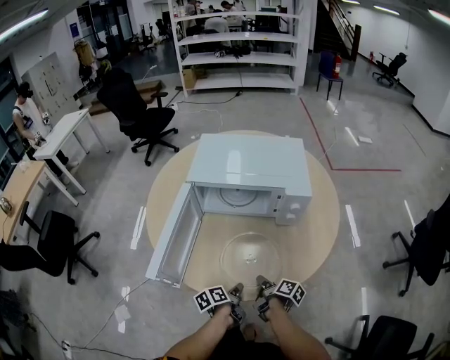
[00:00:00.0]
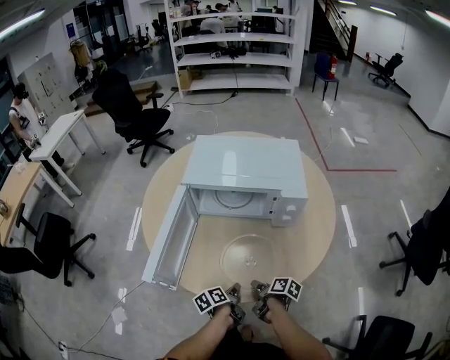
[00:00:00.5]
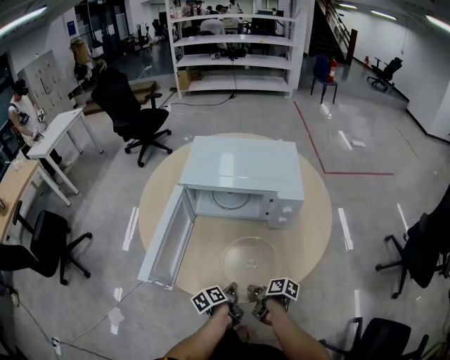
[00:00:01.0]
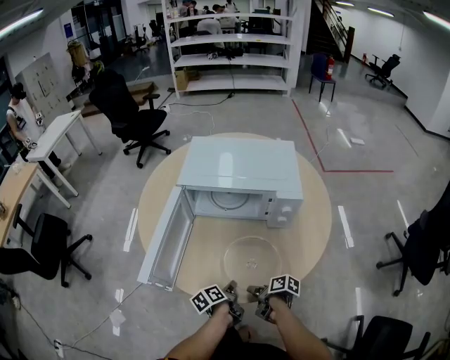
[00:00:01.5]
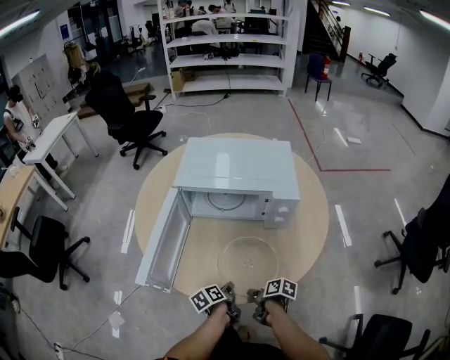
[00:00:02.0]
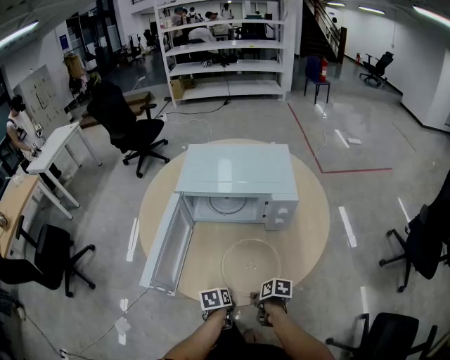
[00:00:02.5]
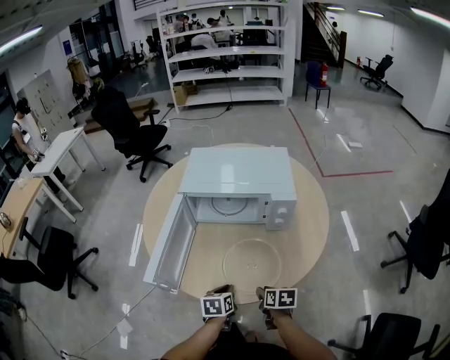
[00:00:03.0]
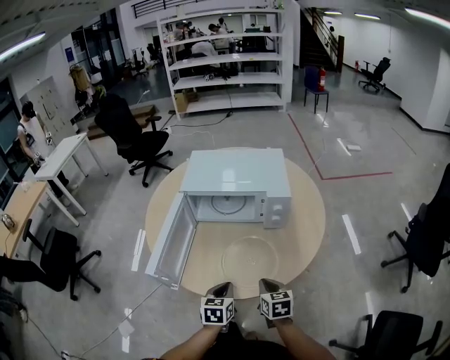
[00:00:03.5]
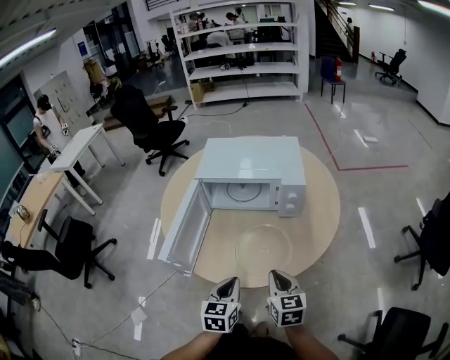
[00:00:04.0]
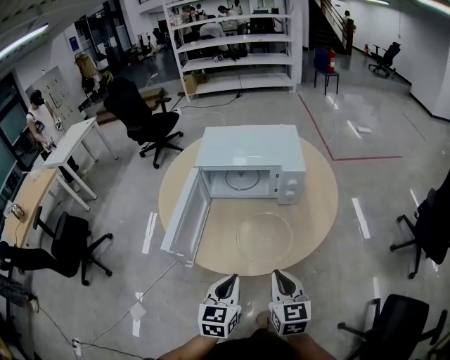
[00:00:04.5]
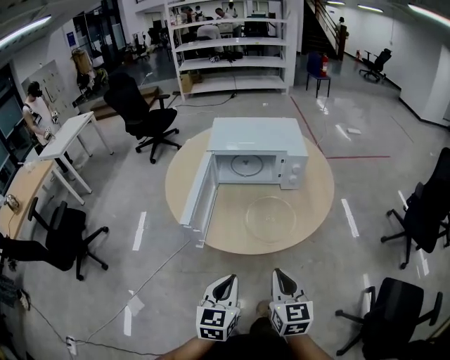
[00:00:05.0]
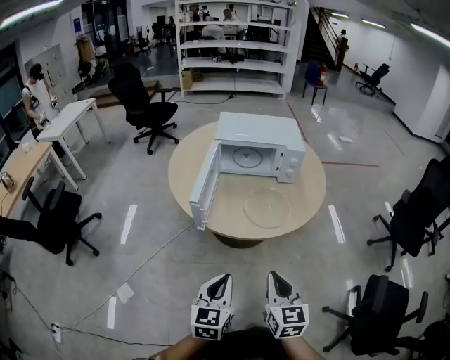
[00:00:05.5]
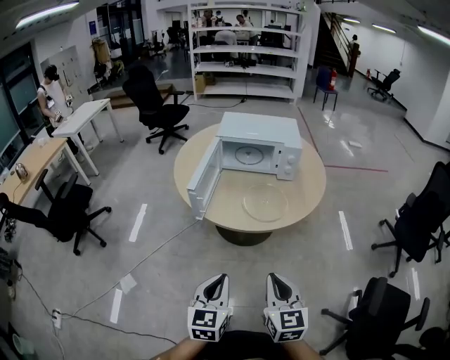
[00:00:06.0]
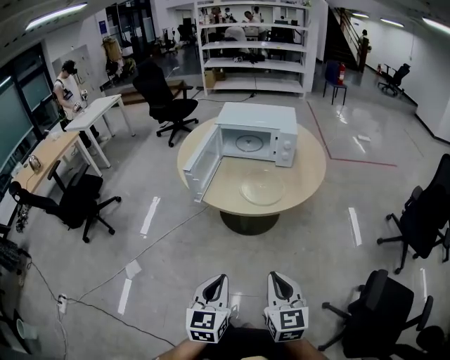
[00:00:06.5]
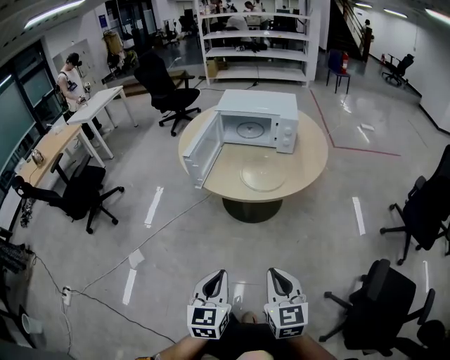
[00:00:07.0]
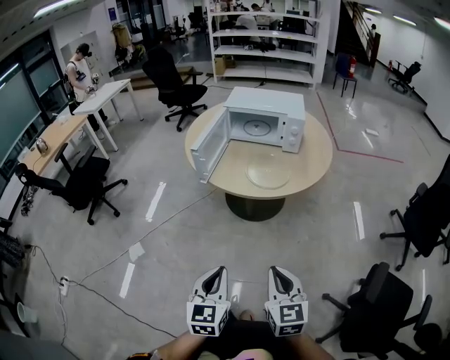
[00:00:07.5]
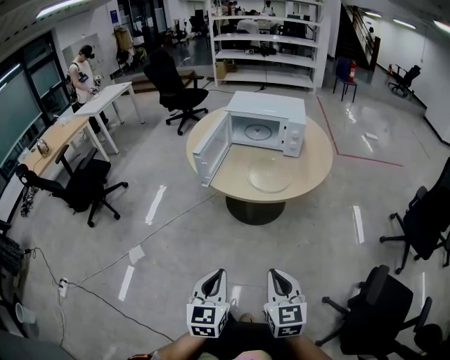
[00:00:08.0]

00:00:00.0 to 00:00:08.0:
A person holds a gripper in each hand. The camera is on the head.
00:00:00.0 to 00:00:02.0: The right gripper swivels about 30 degrees.
00:00:02.0 to 00:00:04.0: The right gripper heads upward, covering some 20 cm, rolls counterclockwise, seen from behind, by about 60 degrees, and closes its fingers; the left gripper travels upward and backward by roughly 20 cm, and rolls clockwise, seen from behind, by roughly 60 degrees.
00:00:04.0 to 00:00:06.0: Both grippers move backward, roughly 35 cm.
00:00:06.0 to 00:00:08.0: The left gripper is displaced backward by about 15 cm; the right gripper travels backward and to the right by some 15 cm.

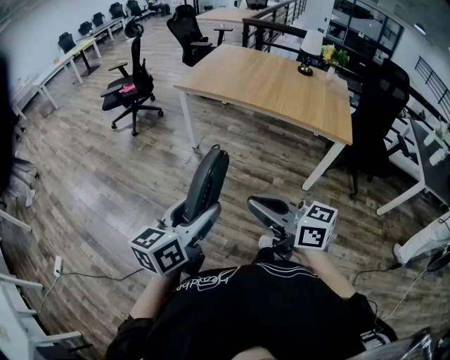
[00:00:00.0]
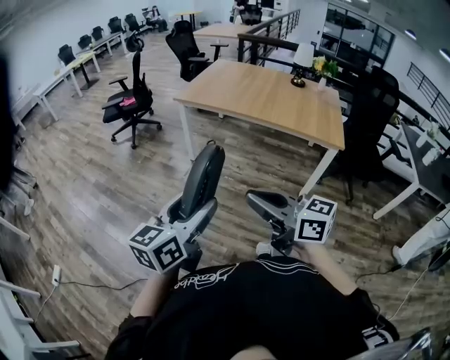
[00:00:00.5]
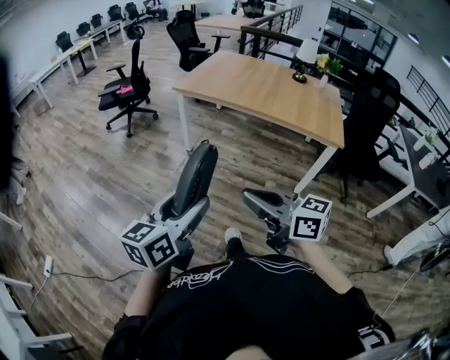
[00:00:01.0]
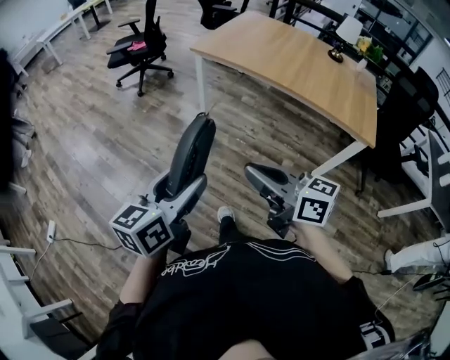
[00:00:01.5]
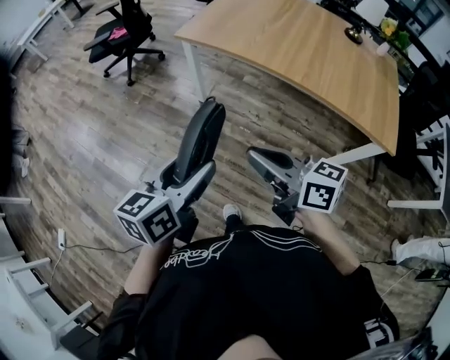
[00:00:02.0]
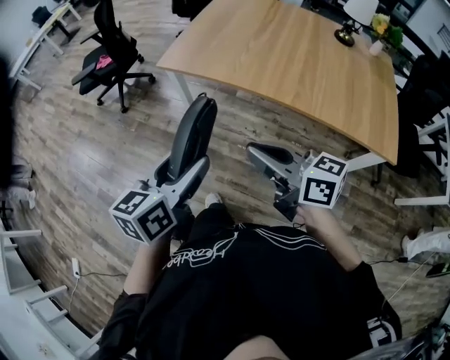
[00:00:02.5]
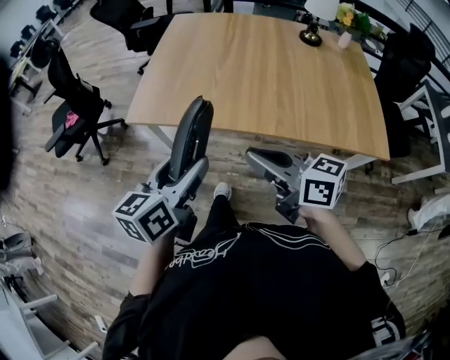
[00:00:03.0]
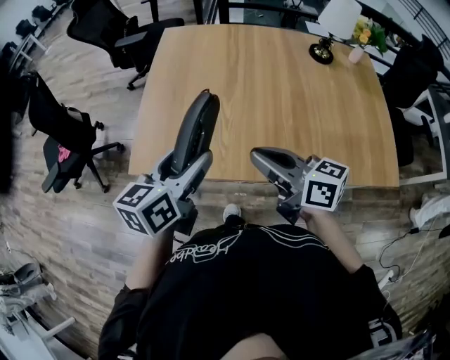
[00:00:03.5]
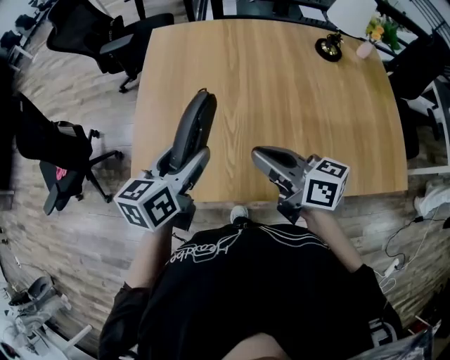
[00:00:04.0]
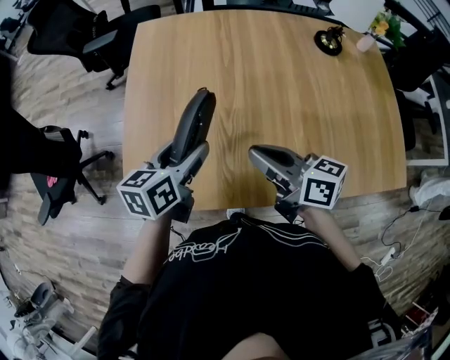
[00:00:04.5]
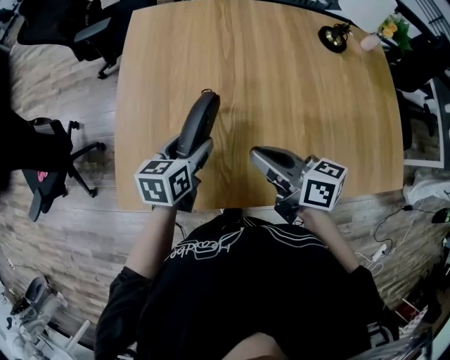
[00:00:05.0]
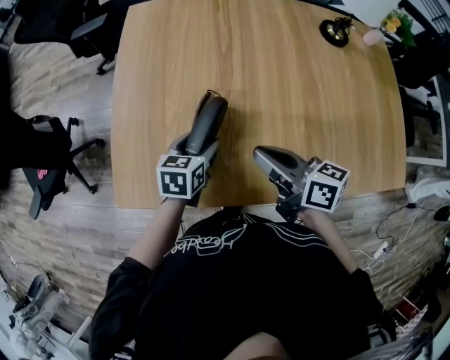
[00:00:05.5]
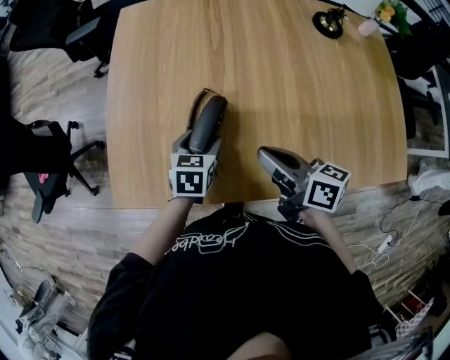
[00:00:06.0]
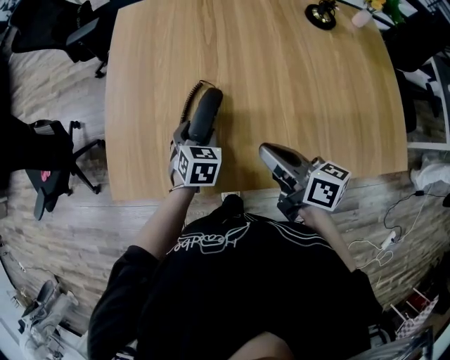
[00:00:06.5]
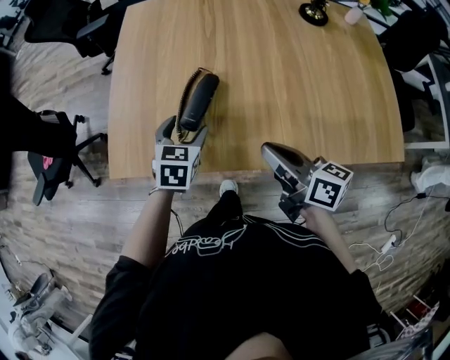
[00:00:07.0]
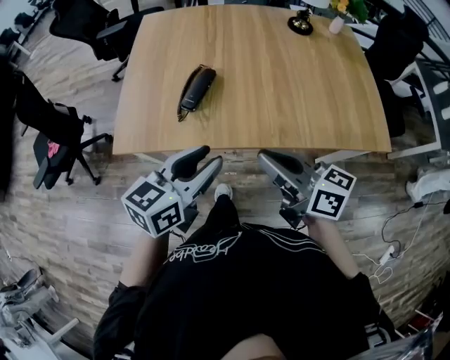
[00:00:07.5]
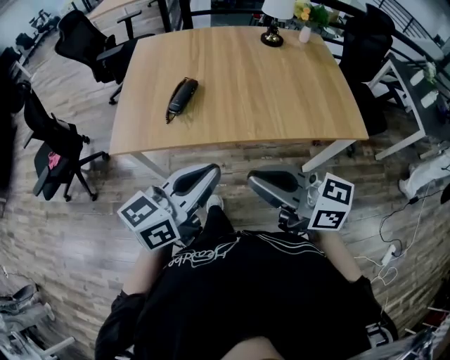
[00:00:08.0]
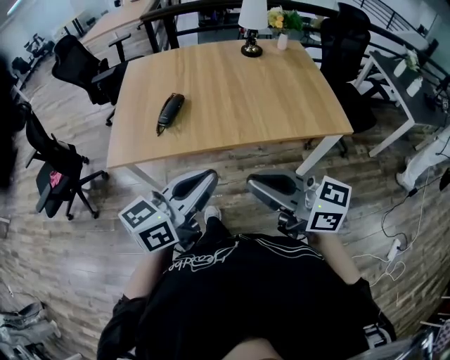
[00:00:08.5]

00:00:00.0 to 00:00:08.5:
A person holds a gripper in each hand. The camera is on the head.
00:00:00.0 to 00:00:02.0: The grippers both shift forward by about 30 cm.
00:00:02.0 to 00:00:04.0: Both grippers are carried roughly 60 cm. The right gripper turns by approximately 30 degrees. The left gripper rotates approximately 30 degrees.
00:00:04.0 to 00:00:06.5: The right gripper heads downward and to the right, covering some 10 cm. The left gripper moves downward, roughly 20 cm, and changes its angle by some 40 degrees.
00:00:06.5 to 00:00:08.5: The grippers both shift backward and upward by roughly 50 cm. The left gripper points its fingers roughly 50 degrees further upward, and closes its fingers. The right gripper rotates some 40 degrees.

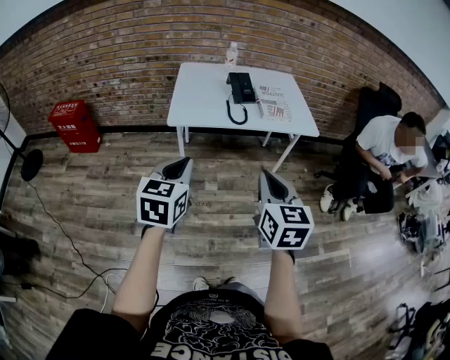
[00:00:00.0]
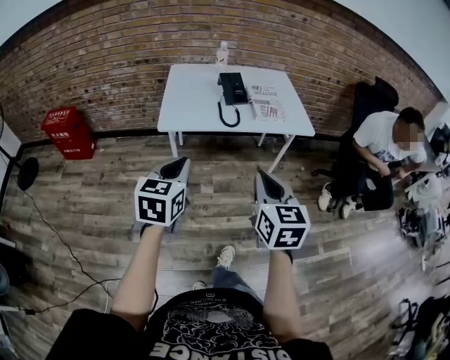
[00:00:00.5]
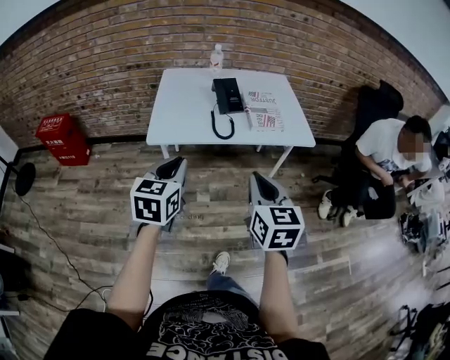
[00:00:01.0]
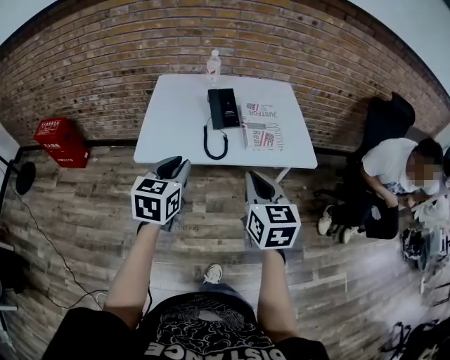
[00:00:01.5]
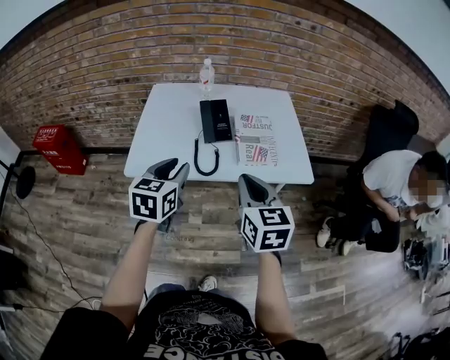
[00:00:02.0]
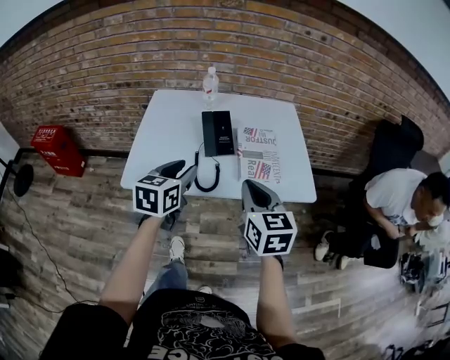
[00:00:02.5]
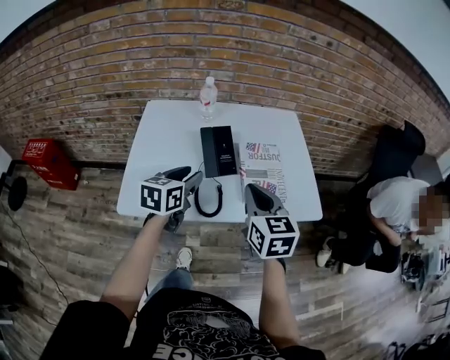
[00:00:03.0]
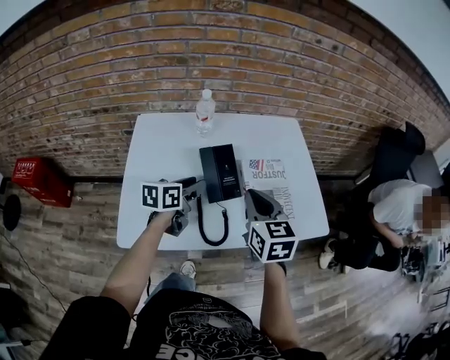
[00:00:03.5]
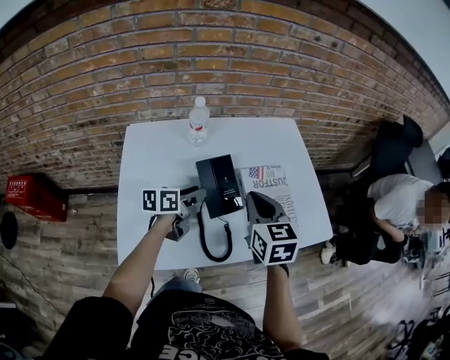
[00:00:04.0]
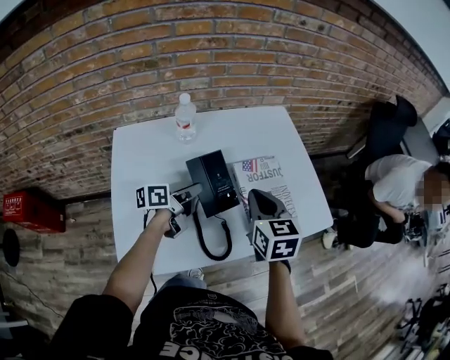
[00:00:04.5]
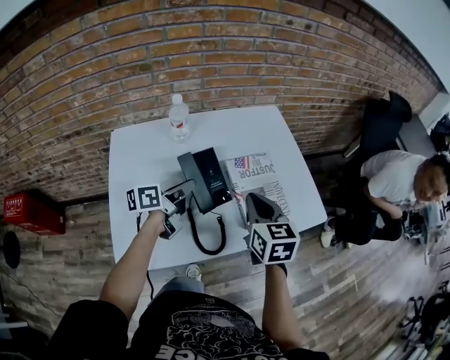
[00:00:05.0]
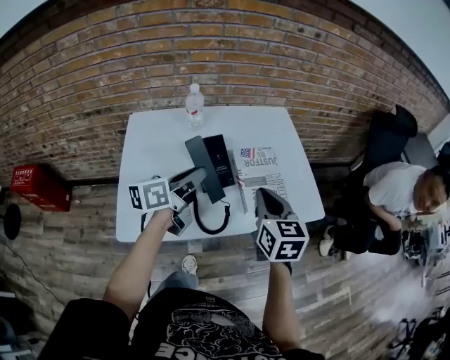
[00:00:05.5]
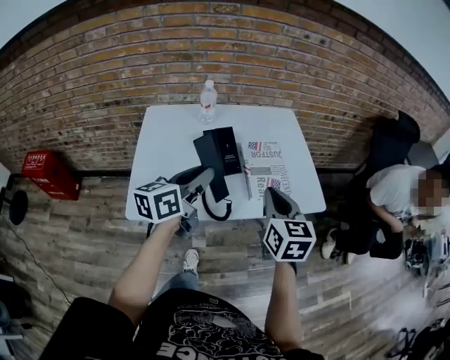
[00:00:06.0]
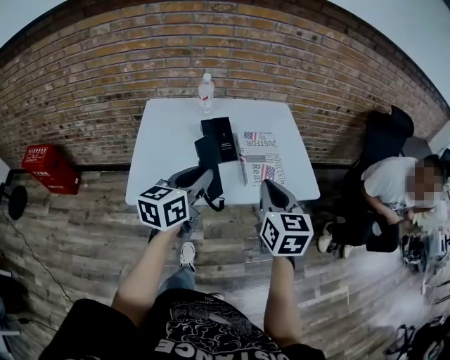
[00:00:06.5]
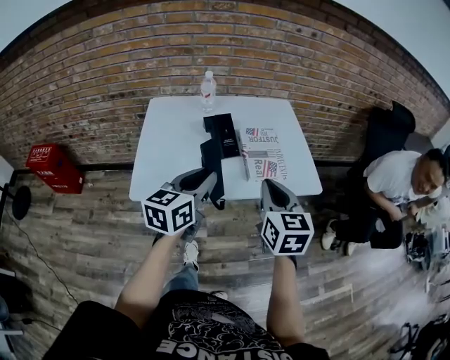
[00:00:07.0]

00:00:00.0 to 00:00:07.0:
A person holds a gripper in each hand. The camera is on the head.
00:00:00.0 to 00:00:02.0: Both grippers move forward, about 30 cm. The left gripper opens up.
00:00:02.0 to 00:00:03.5: The right gripper goes about 25 cm forward, while the left gripper moves forward and downward, about 30 cm, and swivels about 30 degrees.
00:00:03.5 to 00:00:05.0: The left gripper turns by roughly 30 degrees; the right gripper moves some 5 cm.
00:00:05.0 to 00:00:07.0: The left gripper goes approximately 30 cm backward and upward, and swivels some 40 degrees. Meanwhile the right gripper moves backward, roughly 20 cm.

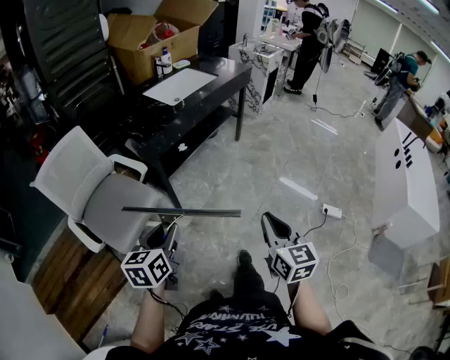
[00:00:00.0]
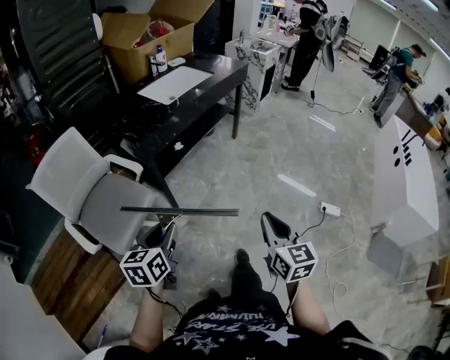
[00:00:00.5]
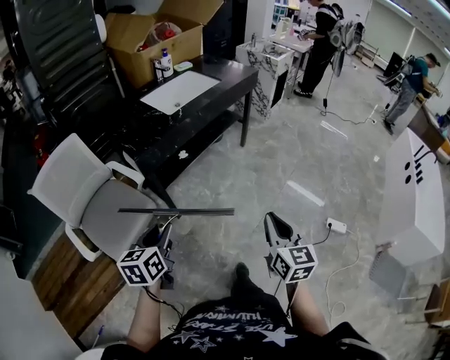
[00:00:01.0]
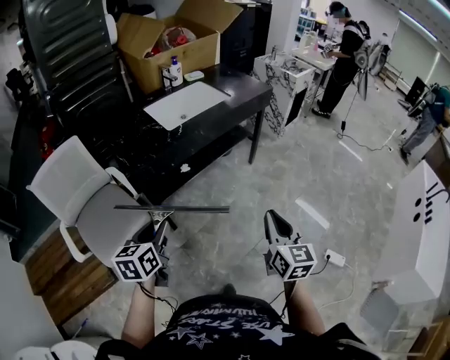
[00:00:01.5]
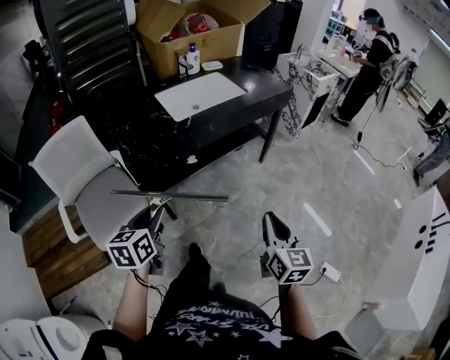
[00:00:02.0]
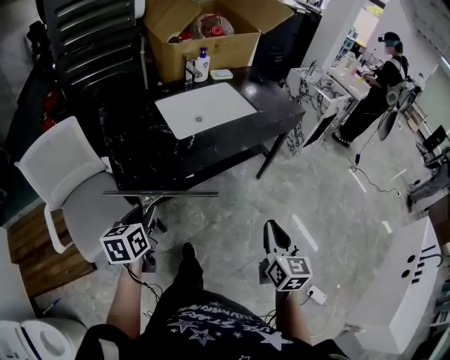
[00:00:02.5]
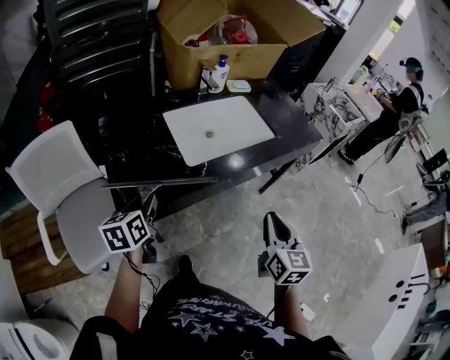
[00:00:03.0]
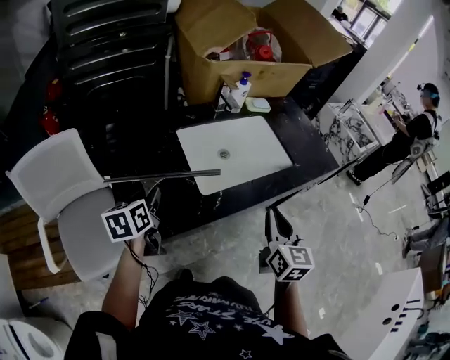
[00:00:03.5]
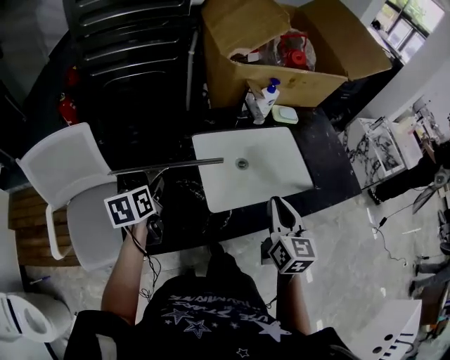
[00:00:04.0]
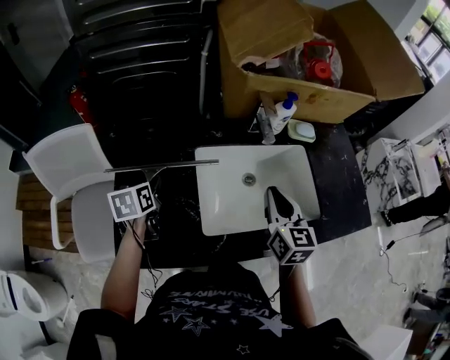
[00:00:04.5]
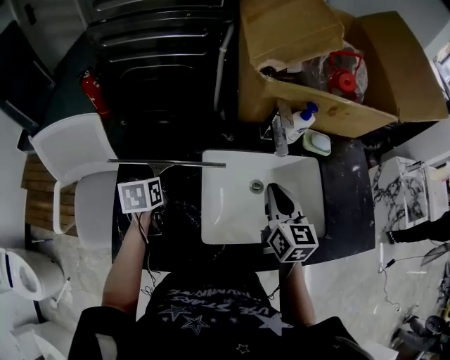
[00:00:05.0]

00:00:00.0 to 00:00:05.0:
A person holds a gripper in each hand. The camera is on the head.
00:00:00.0 to 00:00:02.5: Both grippers are carried forward, approximately 40 cm. The left gripper turns by roughly 30 degrees.
00:00:02.5 to 00:00:05.0: The pair of grippers is taken approximately 60 cm. The right gripper rotates roughly 30 degrees, while the left gripper changes its angle by some 30 degrees.
